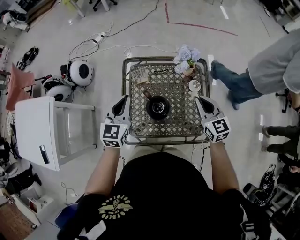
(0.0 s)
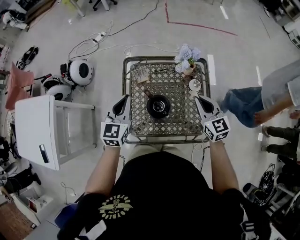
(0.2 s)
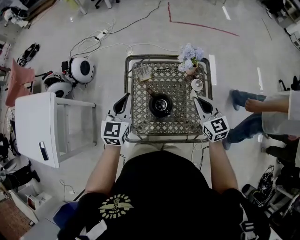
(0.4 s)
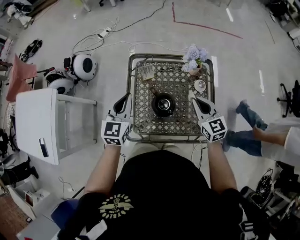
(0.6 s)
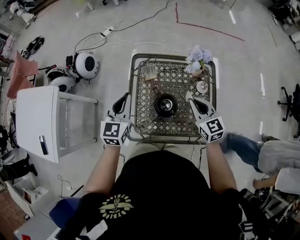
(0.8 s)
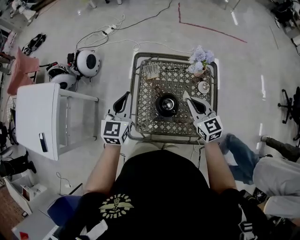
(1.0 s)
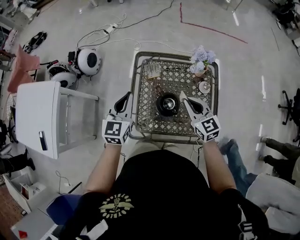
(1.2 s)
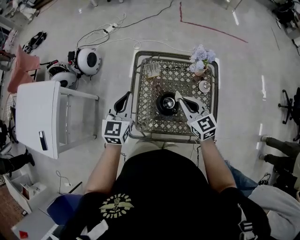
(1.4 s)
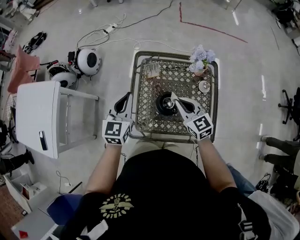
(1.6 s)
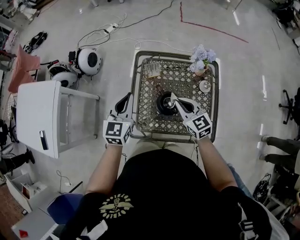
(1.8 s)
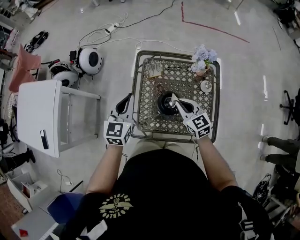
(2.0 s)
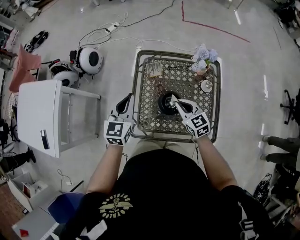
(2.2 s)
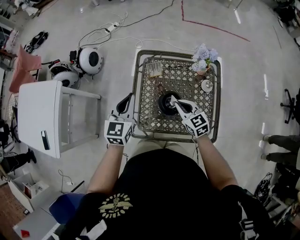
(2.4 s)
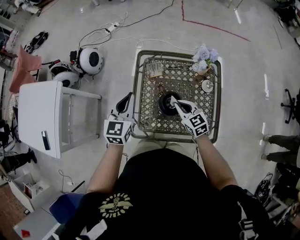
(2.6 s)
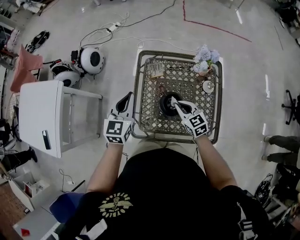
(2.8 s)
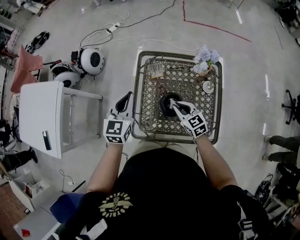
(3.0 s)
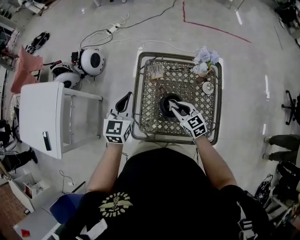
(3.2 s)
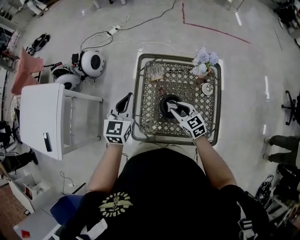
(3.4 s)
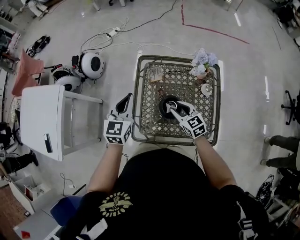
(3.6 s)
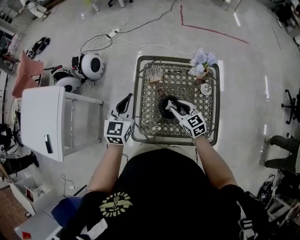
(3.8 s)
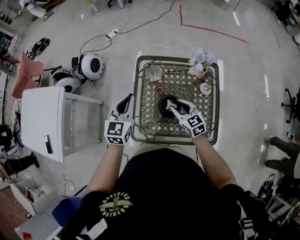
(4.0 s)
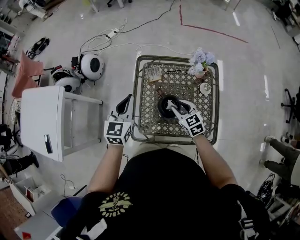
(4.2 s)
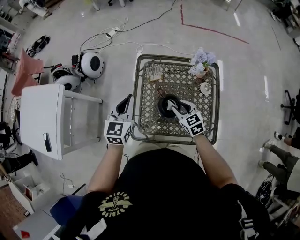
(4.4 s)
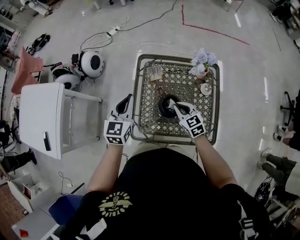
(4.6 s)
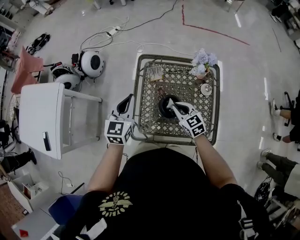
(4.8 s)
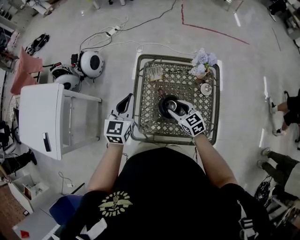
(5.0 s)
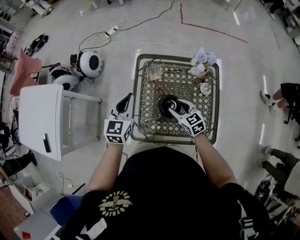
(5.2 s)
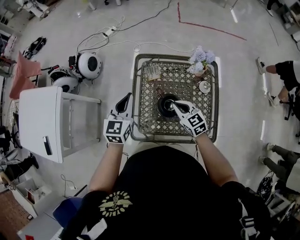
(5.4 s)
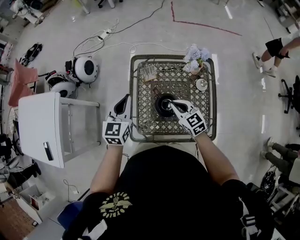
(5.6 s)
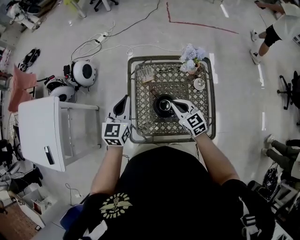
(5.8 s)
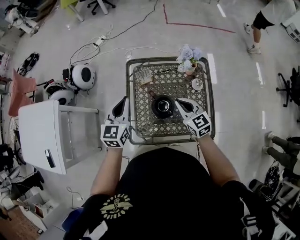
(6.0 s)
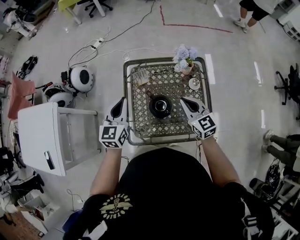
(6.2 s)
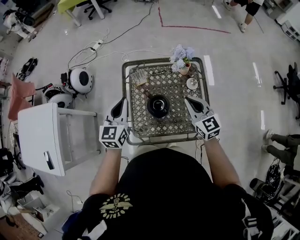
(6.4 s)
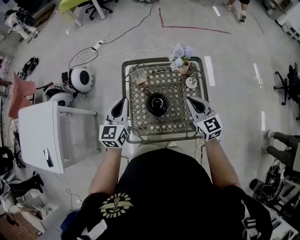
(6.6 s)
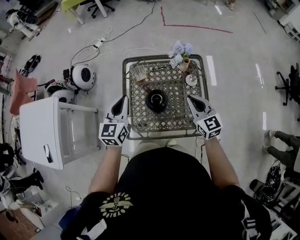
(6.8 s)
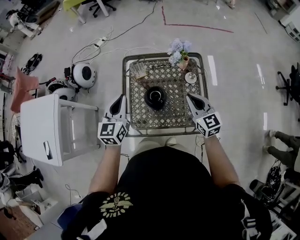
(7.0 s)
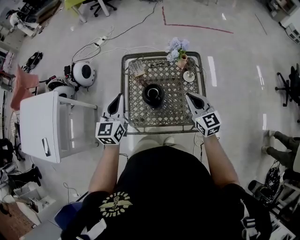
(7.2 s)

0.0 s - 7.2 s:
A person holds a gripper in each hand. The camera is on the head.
0.0 s - 1.4 s: The right gripper is displaced to the left by some 15 cm, while the left gripper goes about 5 cm to the left.
1.4 s - 2.8 s: The right gripper shifts approximately 10 cm downward.
2.8 s - 4.4 s: The right gripper opens its fingers.
4.4 s - 5.8 s: The right gripper closes its fingers.
5.8 s - 7.2 s: The right gripper heads to the right, upward and backward, covering roughly 20 cm, while the left gripper travels backward by approximately 10 cm.

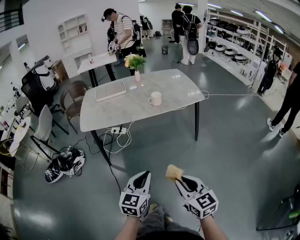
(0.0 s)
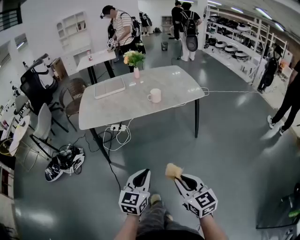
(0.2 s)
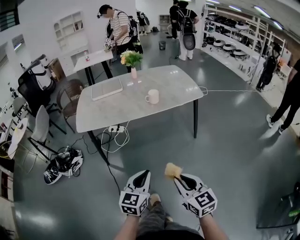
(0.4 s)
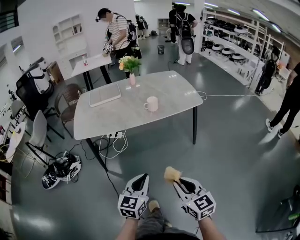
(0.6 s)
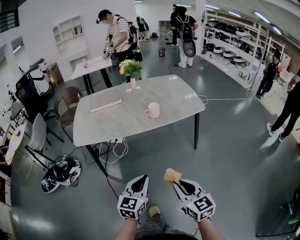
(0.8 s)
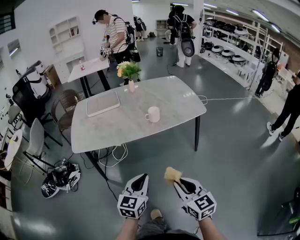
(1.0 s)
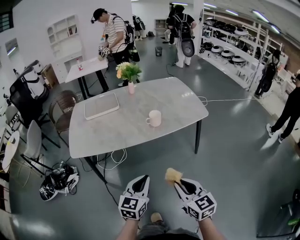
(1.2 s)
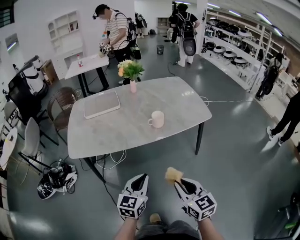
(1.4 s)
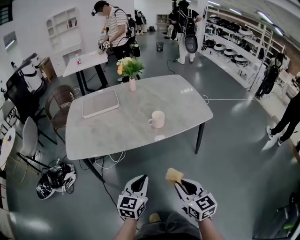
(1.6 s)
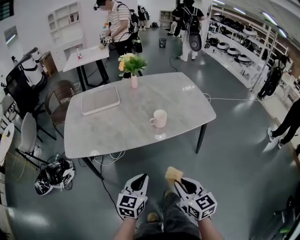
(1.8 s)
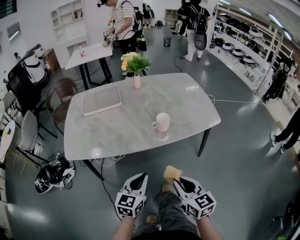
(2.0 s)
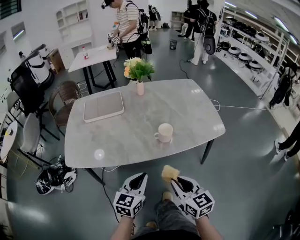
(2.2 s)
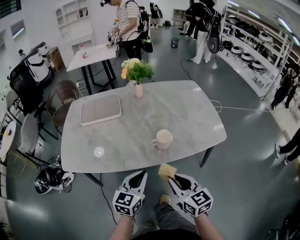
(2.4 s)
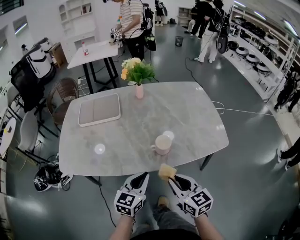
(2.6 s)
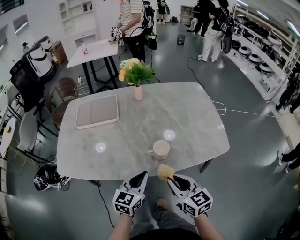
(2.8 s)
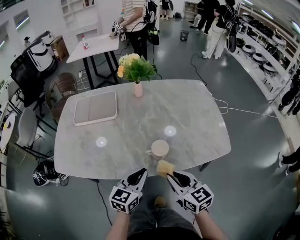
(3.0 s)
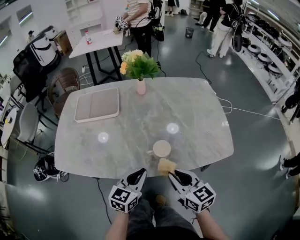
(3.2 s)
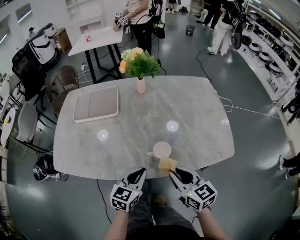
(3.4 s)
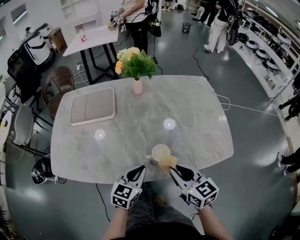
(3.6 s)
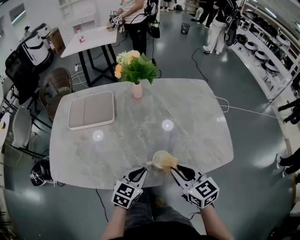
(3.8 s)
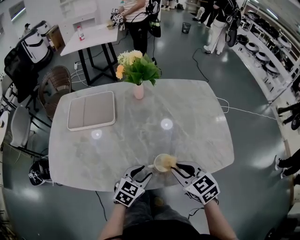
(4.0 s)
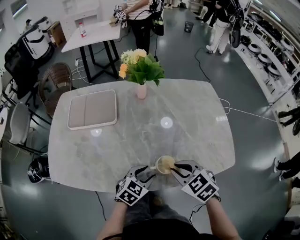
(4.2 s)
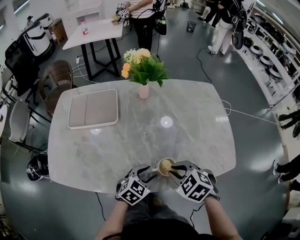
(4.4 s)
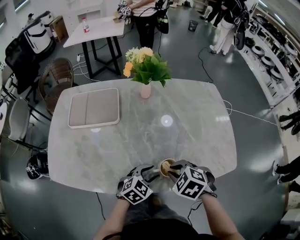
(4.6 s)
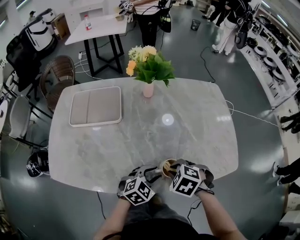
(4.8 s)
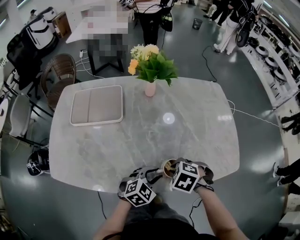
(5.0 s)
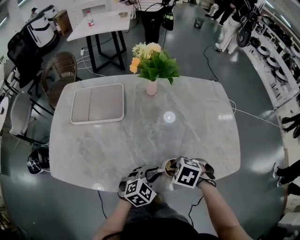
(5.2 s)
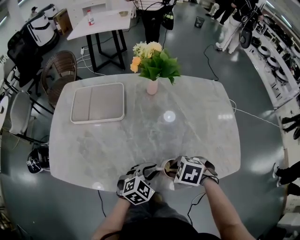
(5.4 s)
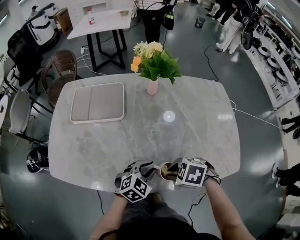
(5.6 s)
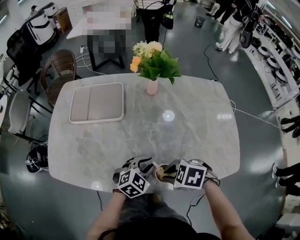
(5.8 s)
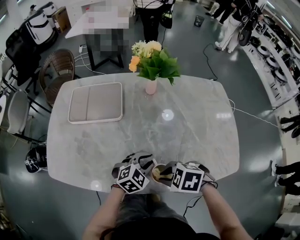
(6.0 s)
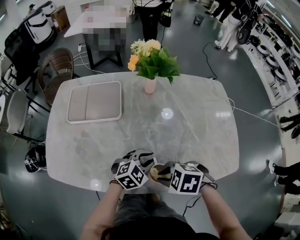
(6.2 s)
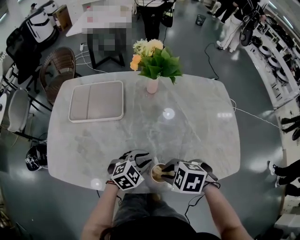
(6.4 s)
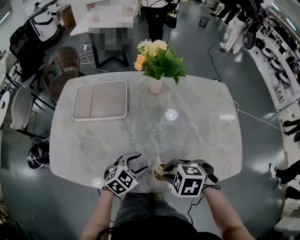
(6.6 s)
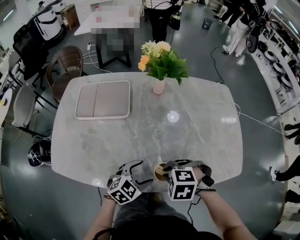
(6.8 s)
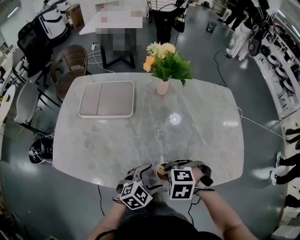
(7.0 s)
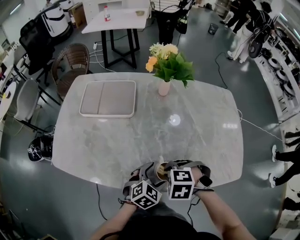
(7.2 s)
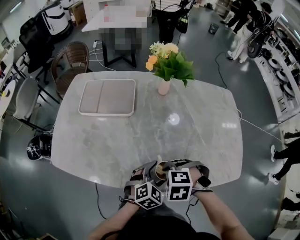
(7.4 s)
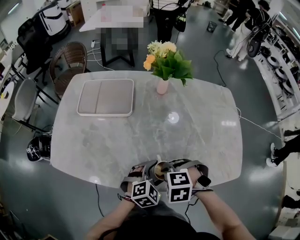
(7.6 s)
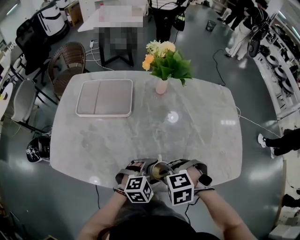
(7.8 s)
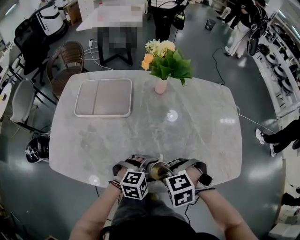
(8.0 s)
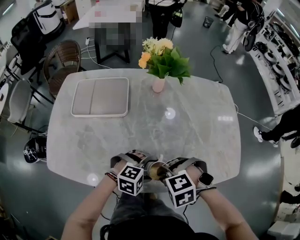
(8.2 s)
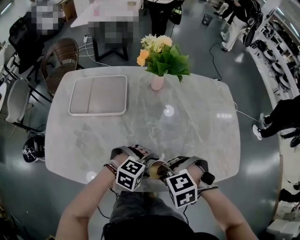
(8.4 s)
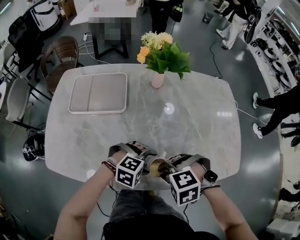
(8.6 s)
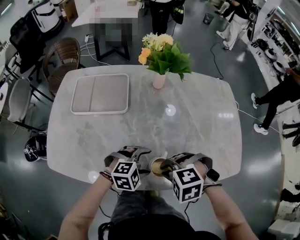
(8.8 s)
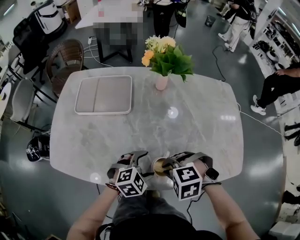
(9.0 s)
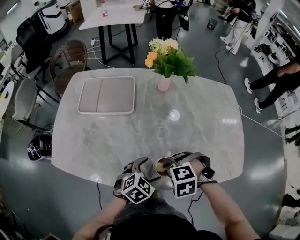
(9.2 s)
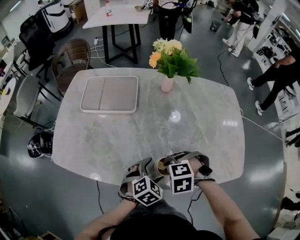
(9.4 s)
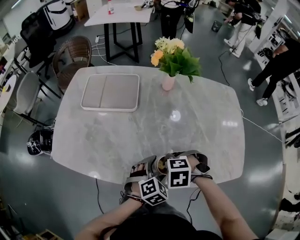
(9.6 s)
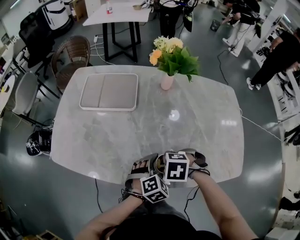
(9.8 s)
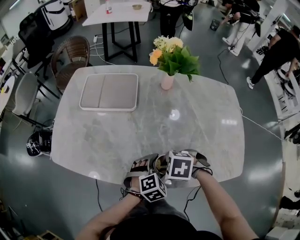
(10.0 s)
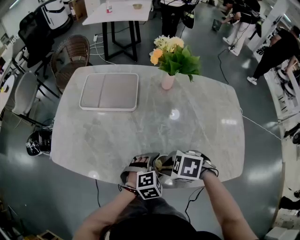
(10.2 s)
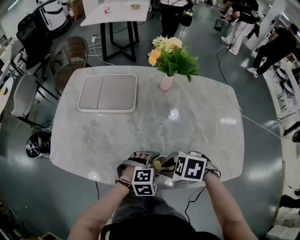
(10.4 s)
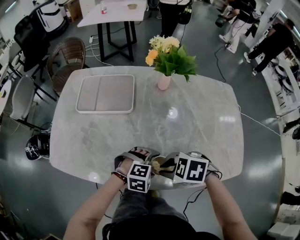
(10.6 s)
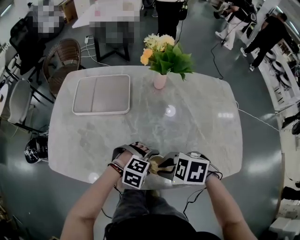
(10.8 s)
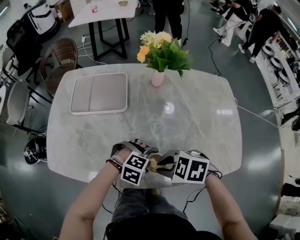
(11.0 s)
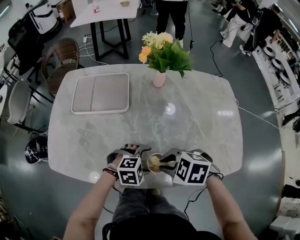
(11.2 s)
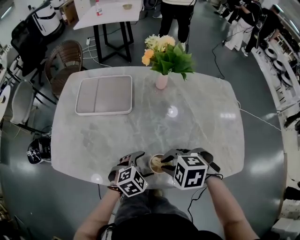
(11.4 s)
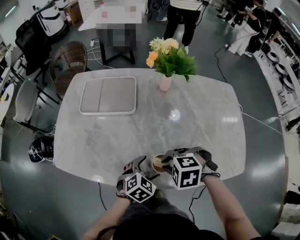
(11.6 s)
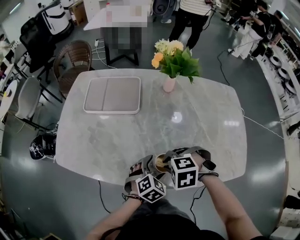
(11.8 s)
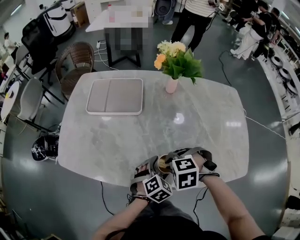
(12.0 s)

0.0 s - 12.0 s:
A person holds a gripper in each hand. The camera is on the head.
0.0 s - 1.6 s: Both grippers travel together forward, about 25 cm.
1.6 s - 3.0 s: Both grippers travel together forward, roughly 25 cm.
3.0 s - 4.4 s: The left gripper travels downward and forward by some 10 cm, changes its angle by some 30 degrees, and opens its fingers, while the right gripper travels forward by some 10 cm, and points its fingers approximately 40 degrees further downward.
4.4 s - 6.0 s: The left gripper changes place by approximately 5 cm. Meanwhile the right gripper moves roughly 5 cm, and swivels approximately 30 degrees.
6.0 s - 7.6 s: The left gripper shifts by roughly 5 cm, and opens its fingers, while the right gripper rotates approximately 30 degrees.
7.6 s - 9.0 s: The left gripper changes place by roughly 5 cm.
9.0 s - 10.4 s: The right gripper turns by about 30 degrees.
10.4 s - 12.0 s: The right gripper rotates some 30 degrees, while the left gripper changes its angle by some 30 degrees.

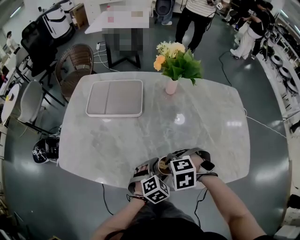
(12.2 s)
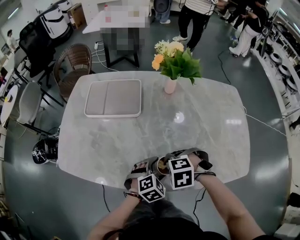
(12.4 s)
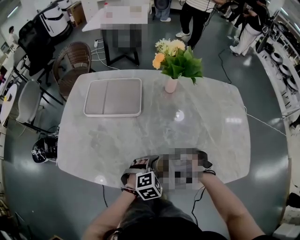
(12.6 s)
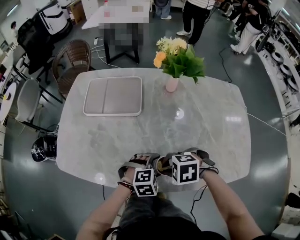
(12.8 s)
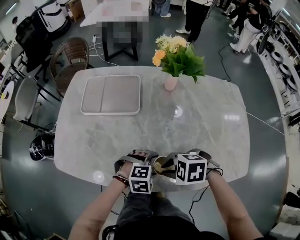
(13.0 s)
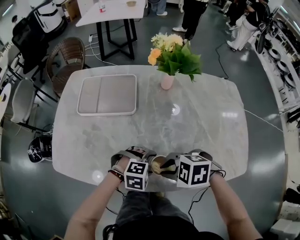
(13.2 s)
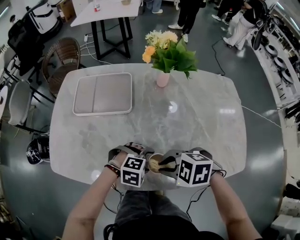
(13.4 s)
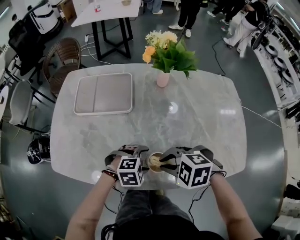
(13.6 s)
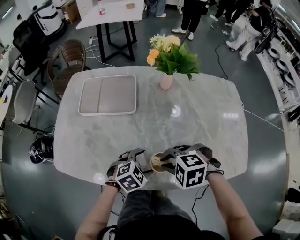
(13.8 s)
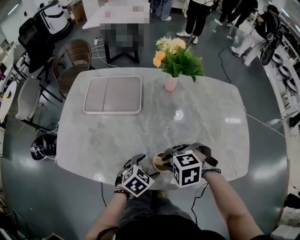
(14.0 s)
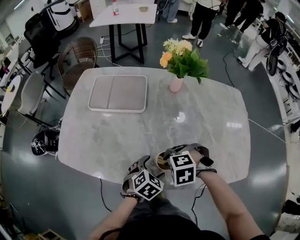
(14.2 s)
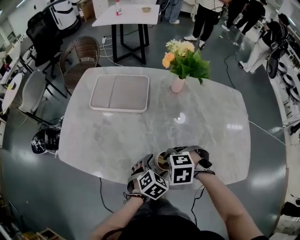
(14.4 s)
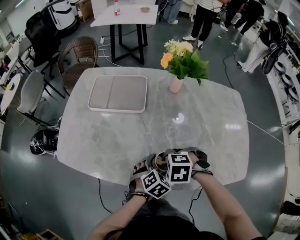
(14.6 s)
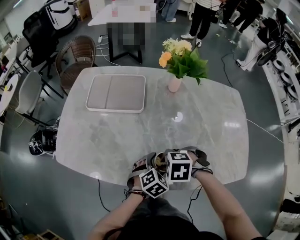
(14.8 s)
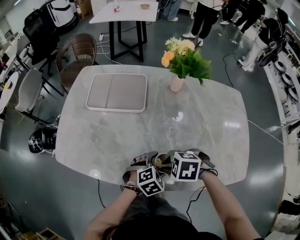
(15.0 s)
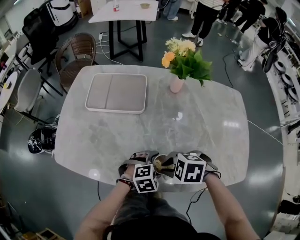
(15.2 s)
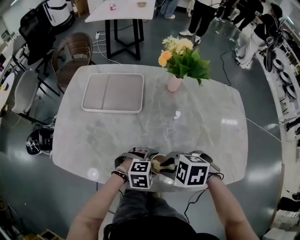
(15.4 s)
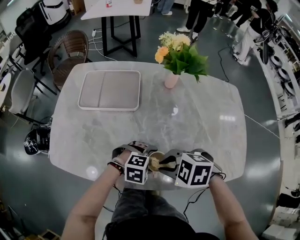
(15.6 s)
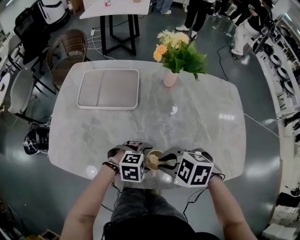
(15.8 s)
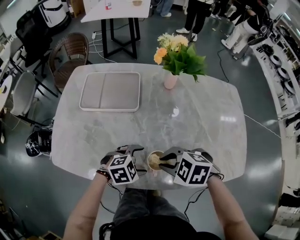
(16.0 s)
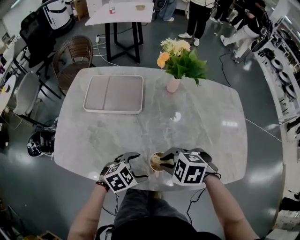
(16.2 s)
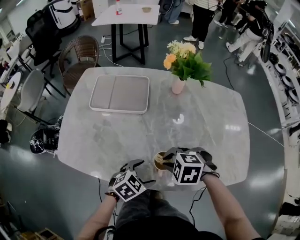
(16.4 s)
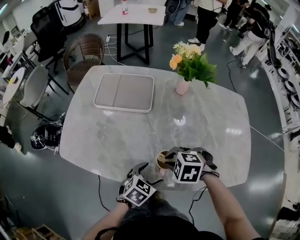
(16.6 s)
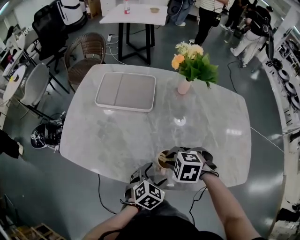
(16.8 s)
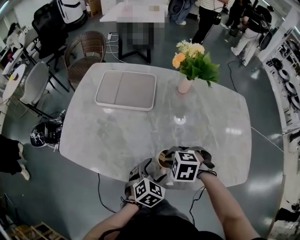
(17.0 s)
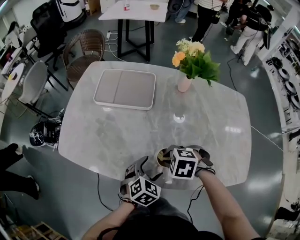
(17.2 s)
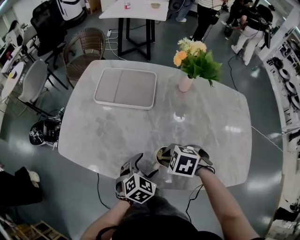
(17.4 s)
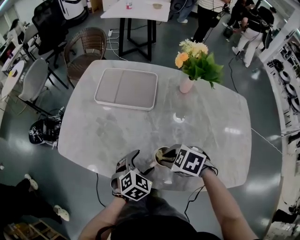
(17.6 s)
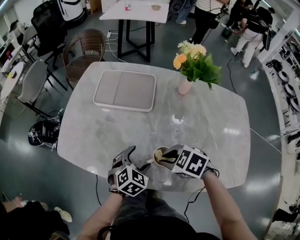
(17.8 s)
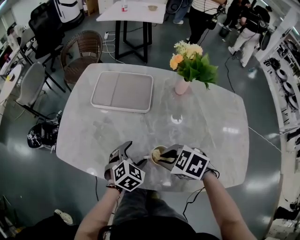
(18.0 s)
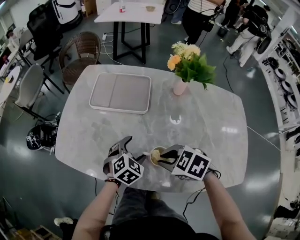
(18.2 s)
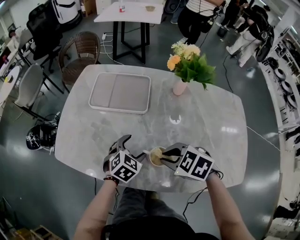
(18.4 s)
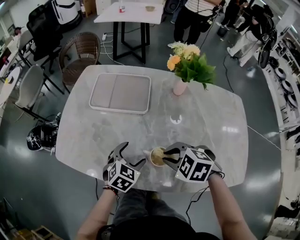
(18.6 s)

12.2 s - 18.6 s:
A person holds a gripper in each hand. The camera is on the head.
12.2 s - 13.8 s: The left gripper shifts by about 5 cm.
13.8 s - 15.4 s: The left gripper swivels some 20 degrees.
15.4 s - 17.0 s: The right gripper moves approximately 5 cm, while the left gripper twists roughly 40 degrees counterclockwise, seen from behind.
17.0 s - 18.6 s: The left gripper moves approximately 10 cm. Meanwhile the right gripper goes approximately 5 cm upward.
